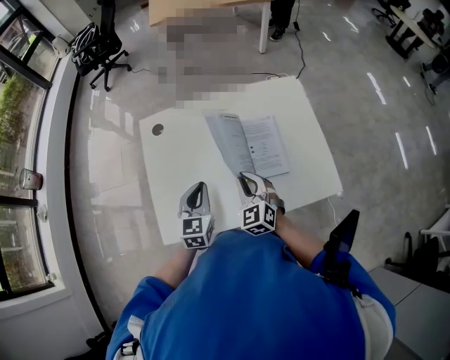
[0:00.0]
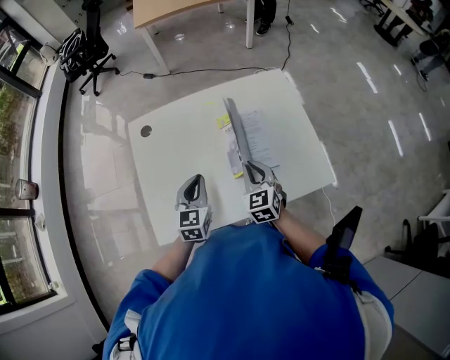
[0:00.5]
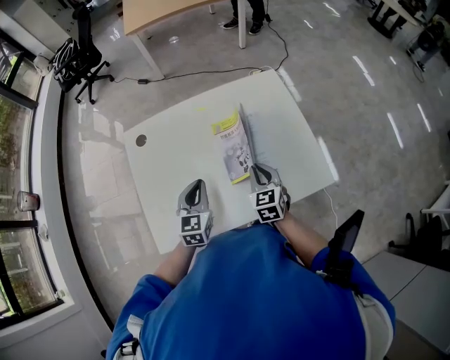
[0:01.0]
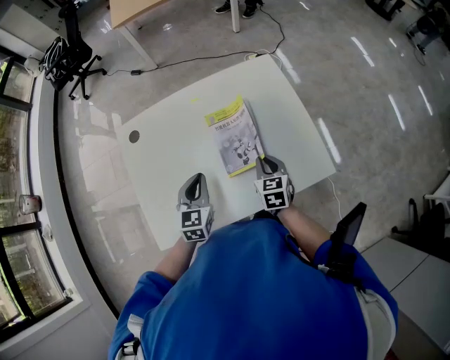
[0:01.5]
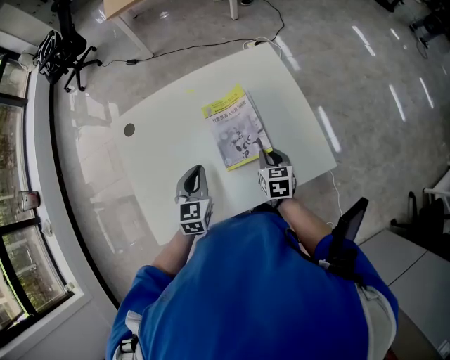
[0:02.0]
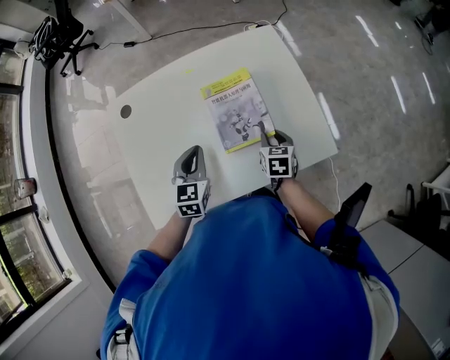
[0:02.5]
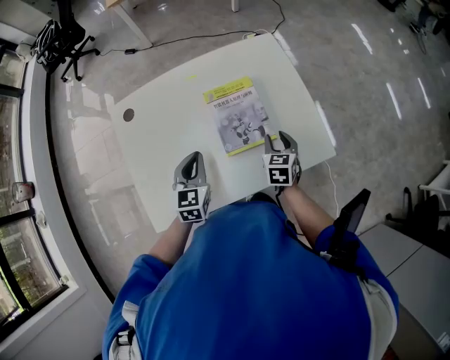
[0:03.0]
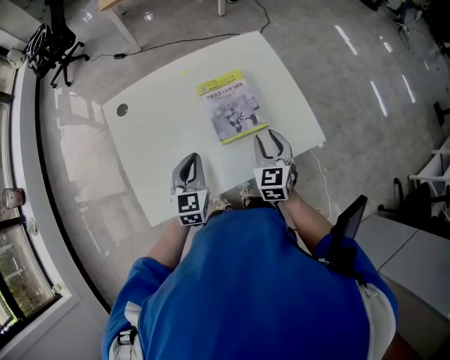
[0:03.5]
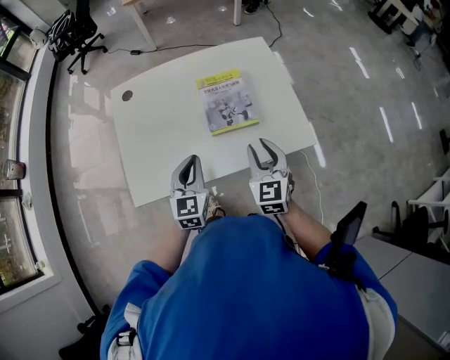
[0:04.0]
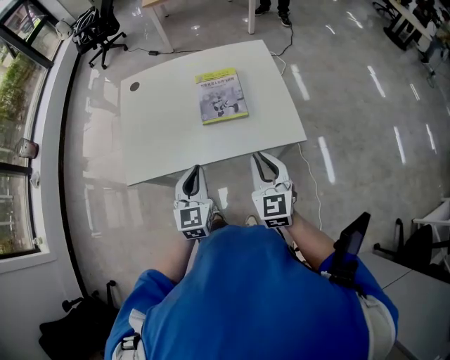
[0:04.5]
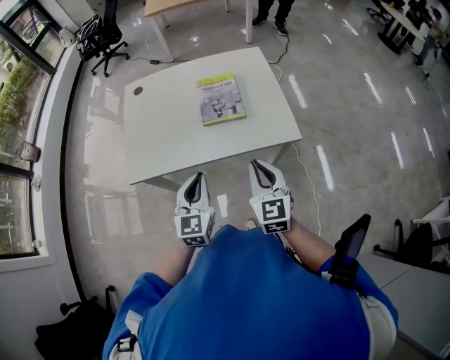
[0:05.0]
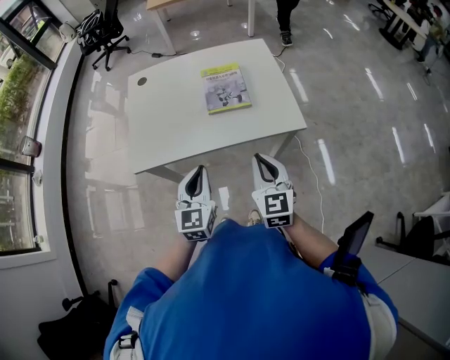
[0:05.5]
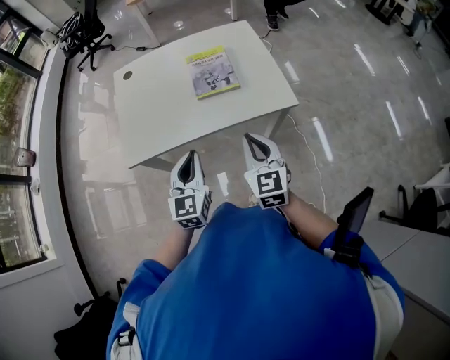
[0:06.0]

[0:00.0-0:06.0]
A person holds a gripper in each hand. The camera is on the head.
0:00.0 to 0:02.0: The right gripper is displaced to the right and downward by some 20 cm, and rolls clockwise, seen from behind, by about 40 degrees. Meanwhile the left gripper travels to the right by some 5 cm.
0:02.0 to 0:04.0: The right gripper shifts about 20 cm upward and backward, and rotates approximately 30 degrees; the left gripper is displaced backward by approximately 15 cm.
0:04.0 to 0:06.0: The two grippers go roughly 20 cm backward. The right gripper closes its fingers.

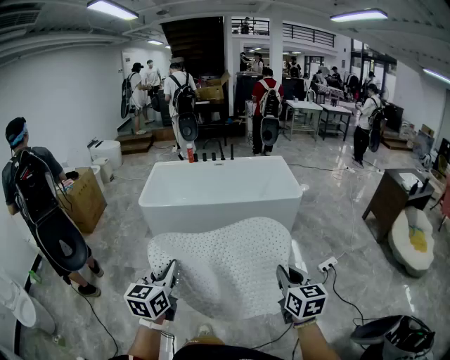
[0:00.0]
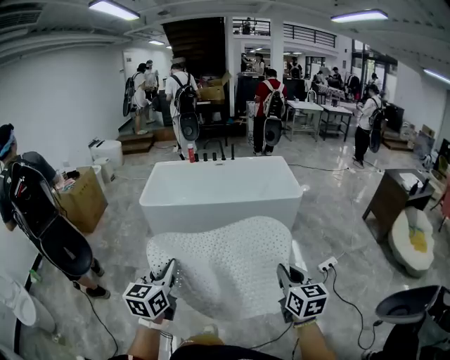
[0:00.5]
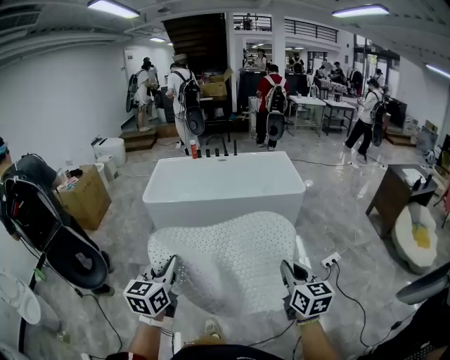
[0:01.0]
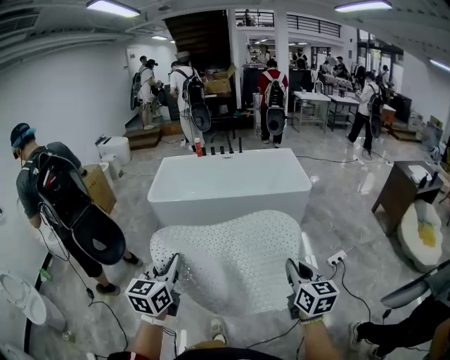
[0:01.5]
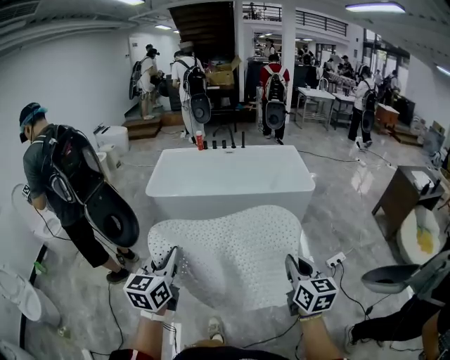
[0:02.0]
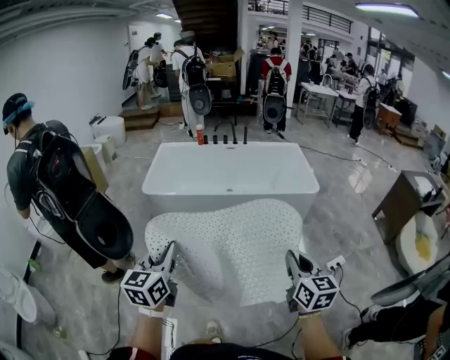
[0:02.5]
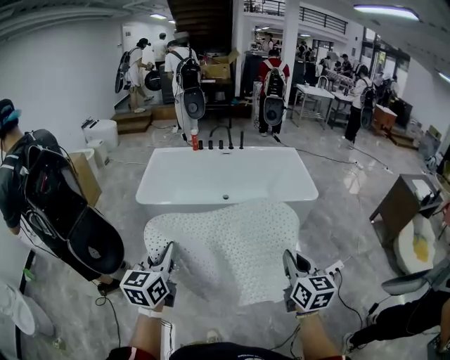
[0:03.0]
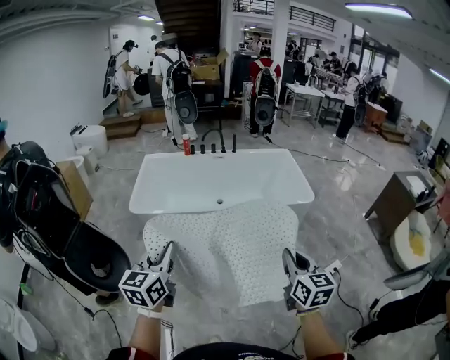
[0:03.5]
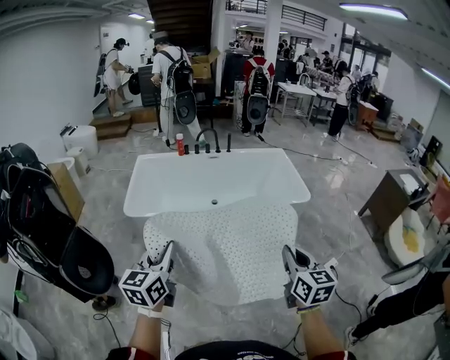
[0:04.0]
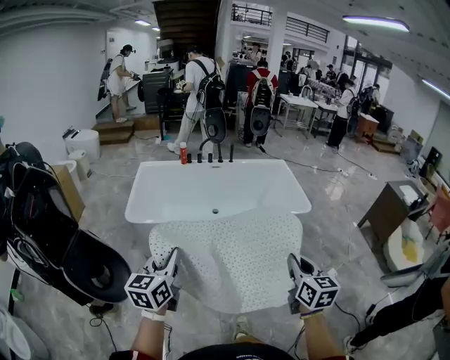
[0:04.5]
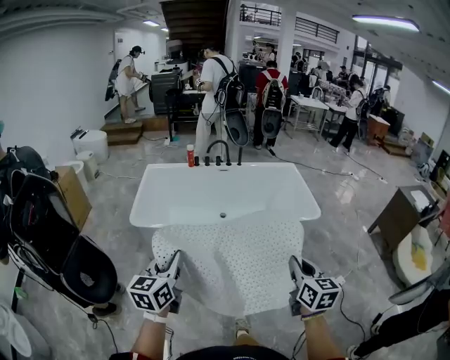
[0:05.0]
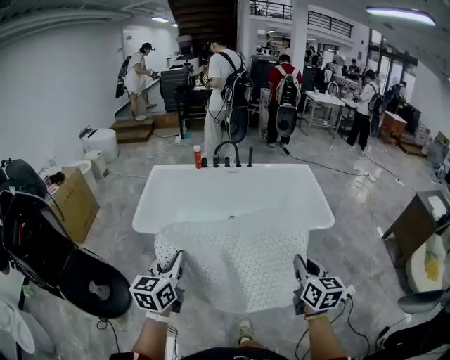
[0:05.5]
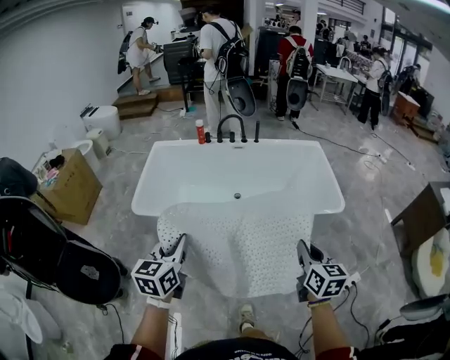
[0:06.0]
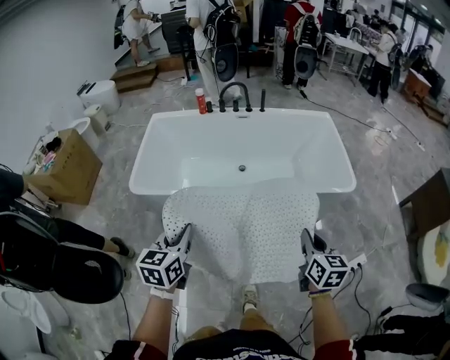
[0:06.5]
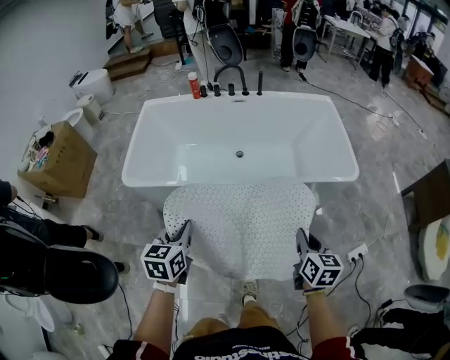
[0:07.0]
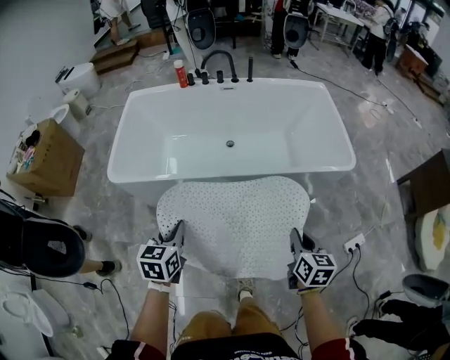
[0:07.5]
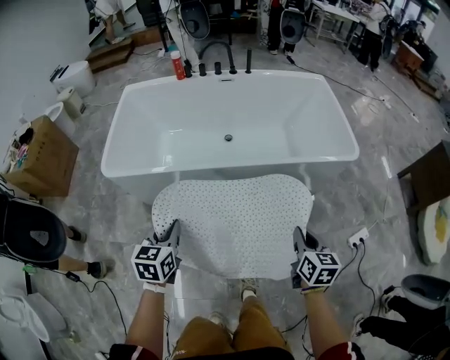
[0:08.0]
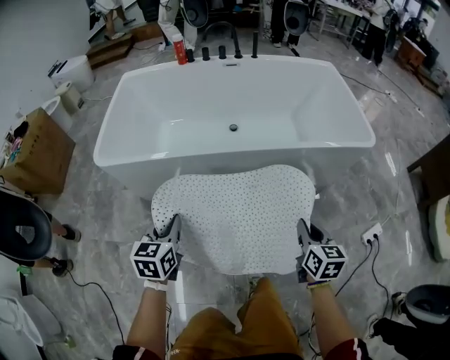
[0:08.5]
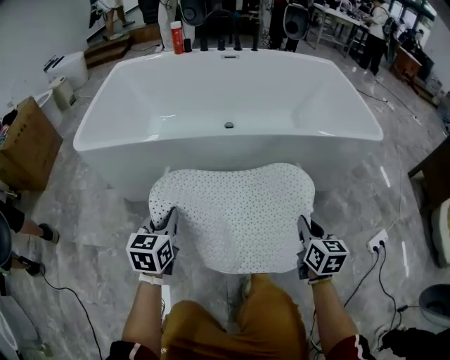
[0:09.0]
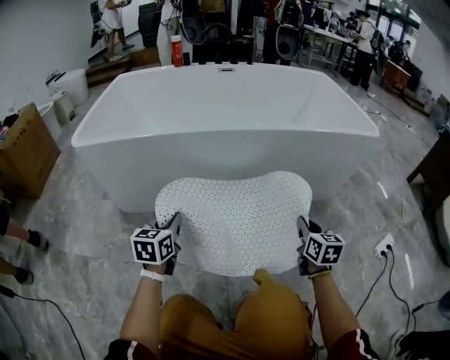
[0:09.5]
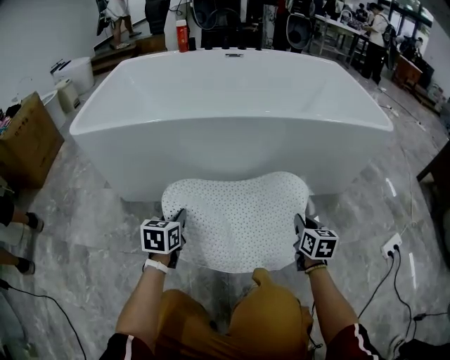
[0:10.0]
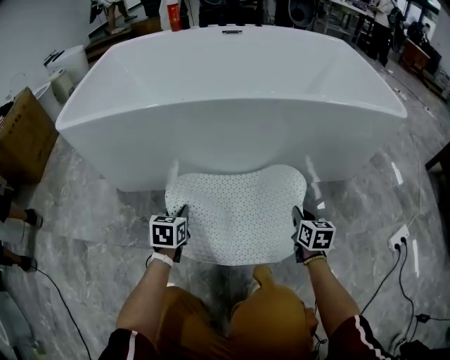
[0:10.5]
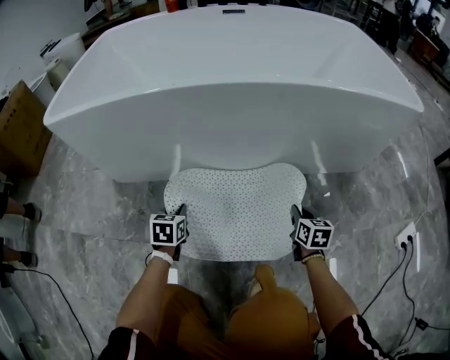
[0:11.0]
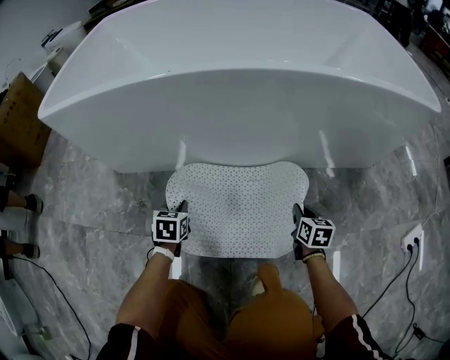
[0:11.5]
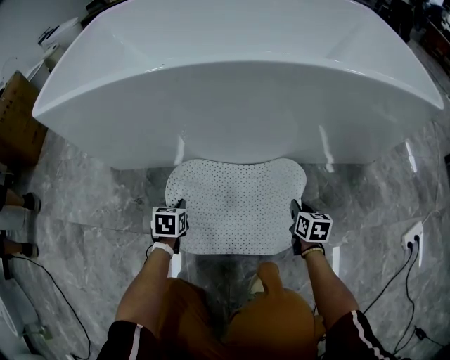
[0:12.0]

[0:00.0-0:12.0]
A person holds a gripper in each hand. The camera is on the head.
0:00.0 to 0:02.0: The grippers both shift forward by about 5 cm.
0:02.0 to 0:04.0: The left gripper travels forward by roughly 30 cm; the right gripper shifts some 25 cm forward and to the left.
0:04.0 to 0:06.0: The two grippers go some 25 cm forward.
0:06.0 to 0:08.0: Both grippers travel together downward, roughly 25 cm.
0:08.0 to 0:10.0: Both grippers move downward, approximately 40 cm.
0:10.0 to 0:12.0: Both grippers travel together downward, approximately 20 cm. The left gripper turns by approximately 20 degrees.

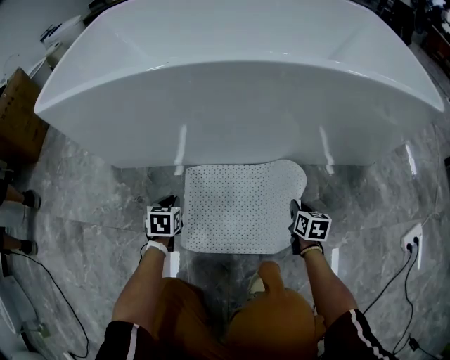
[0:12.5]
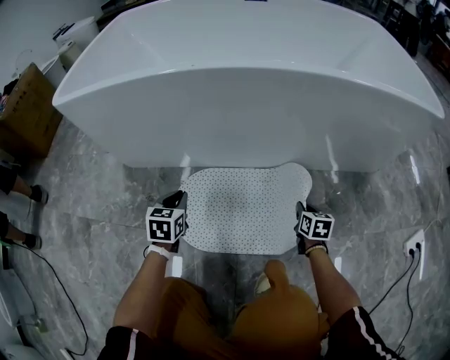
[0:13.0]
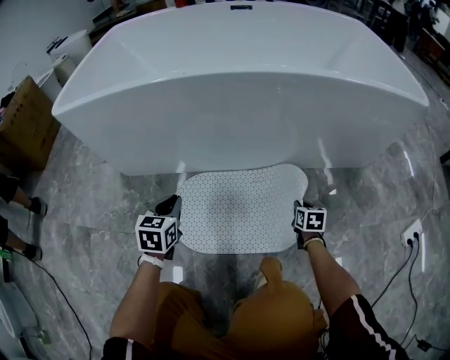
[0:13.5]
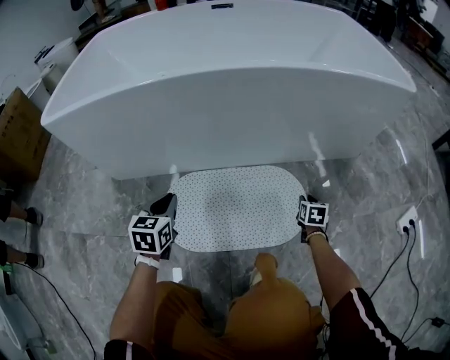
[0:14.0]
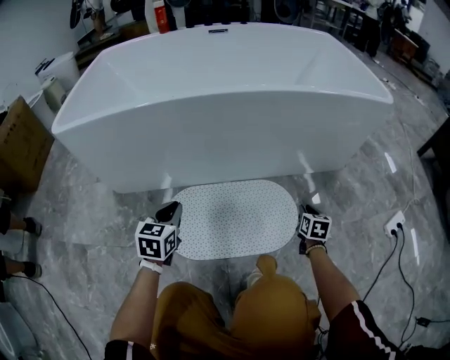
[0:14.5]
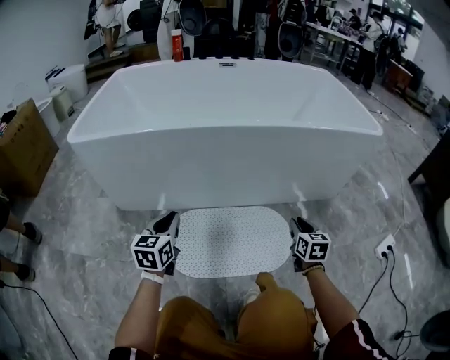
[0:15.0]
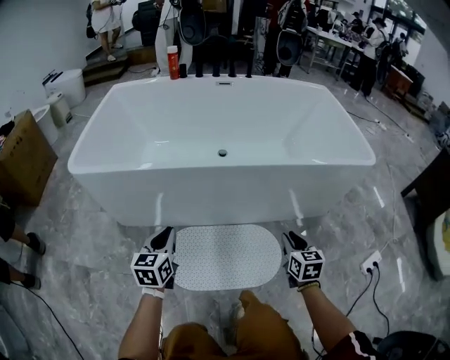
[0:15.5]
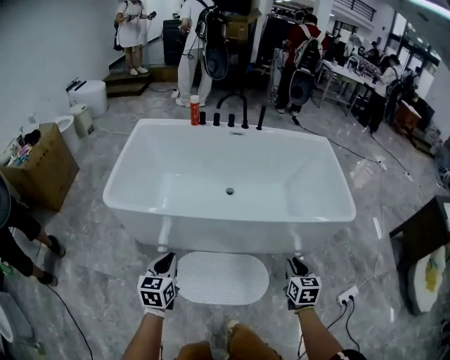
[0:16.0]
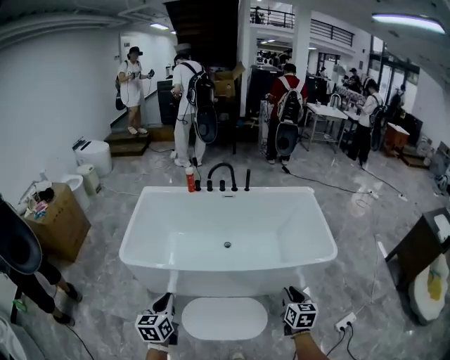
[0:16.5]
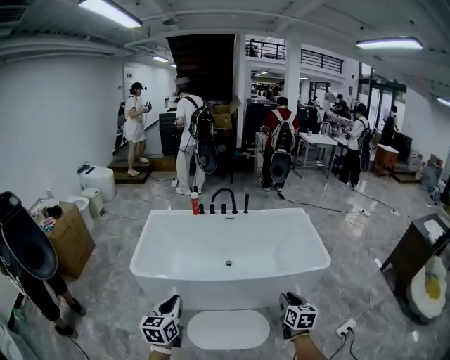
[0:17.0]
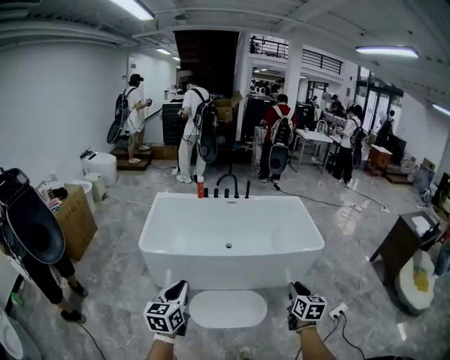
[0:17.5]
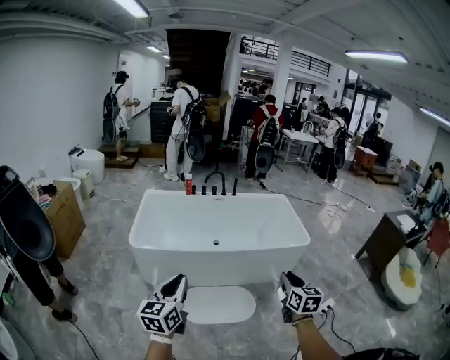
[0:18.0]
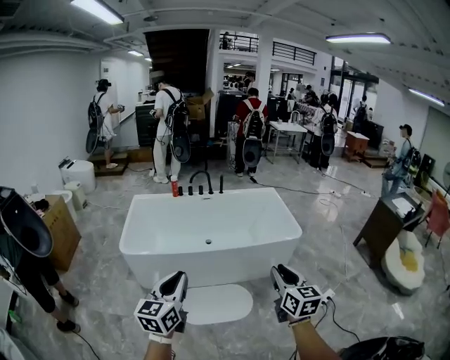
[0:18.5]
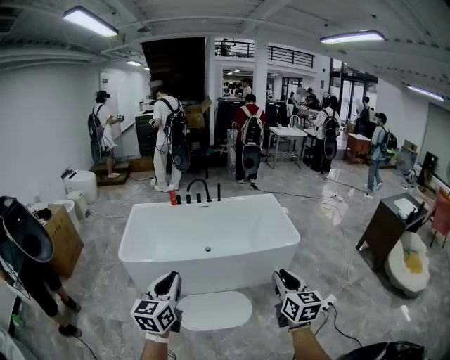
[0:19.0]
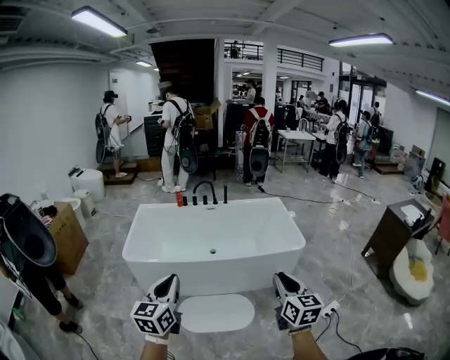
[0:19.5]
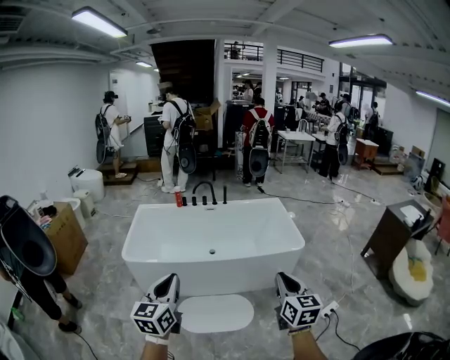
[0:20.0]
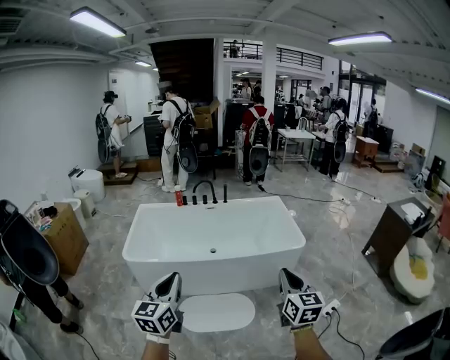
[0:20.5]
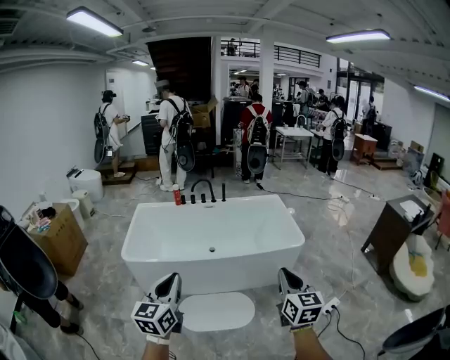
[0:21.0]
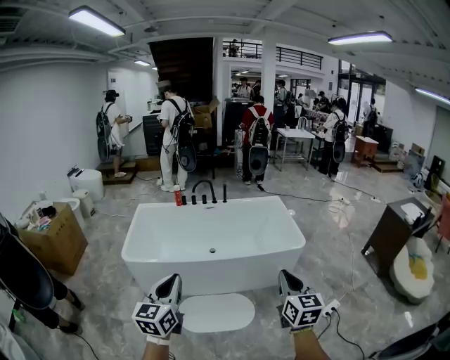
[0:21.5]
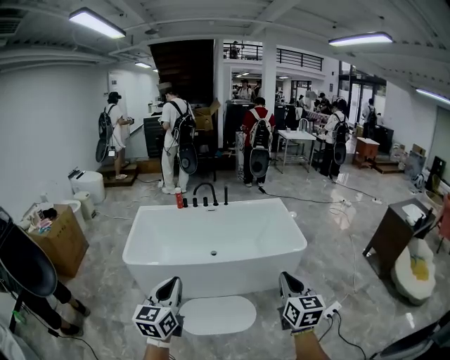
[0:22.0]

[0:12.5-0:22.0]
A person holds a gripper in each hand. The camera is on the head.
0:12.5 to 0:14.5: The left gripper travels upward by about 20 cm, and turns by approximately 30 degrees. The right gripper heads to the right, upward and backward, covering roughly 15 cm.
0:14.5 to 0:16.5: The grippers both shift upward by about 70 cm. The left gripper swivels roughly 30 degrees.
0:16.5 to 0:18.0: The two grippers go approximately 35 cm backward and upward. The left gripper rotates about 20 degrees.
0:18.0 to 0:20.0: The two grippers go some 15 cm to the right and upward.
0:20.0 to 0:22.0: The grippers move only a little.
